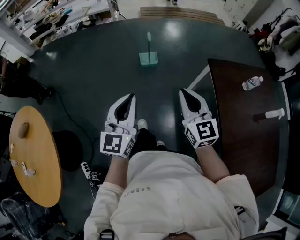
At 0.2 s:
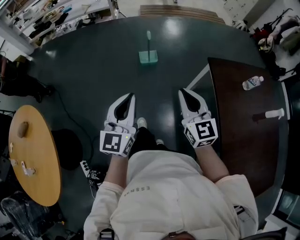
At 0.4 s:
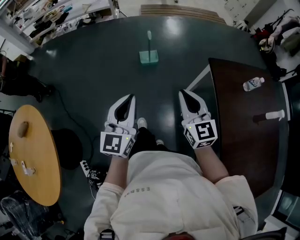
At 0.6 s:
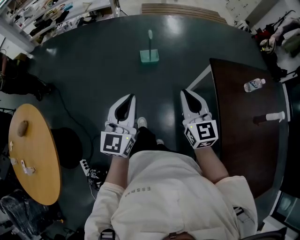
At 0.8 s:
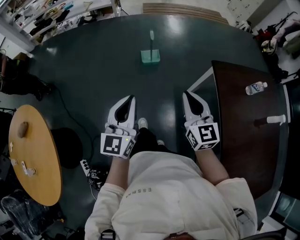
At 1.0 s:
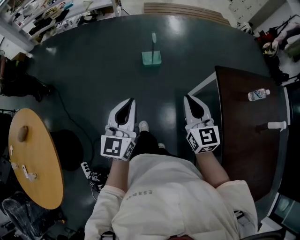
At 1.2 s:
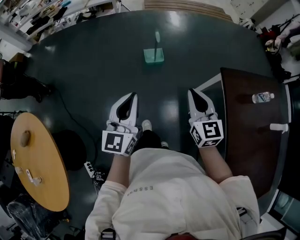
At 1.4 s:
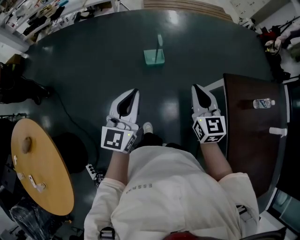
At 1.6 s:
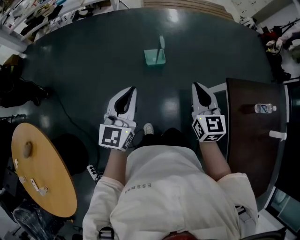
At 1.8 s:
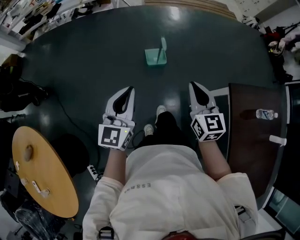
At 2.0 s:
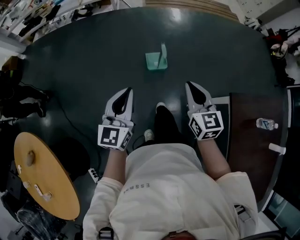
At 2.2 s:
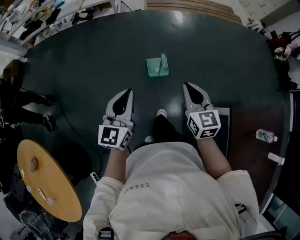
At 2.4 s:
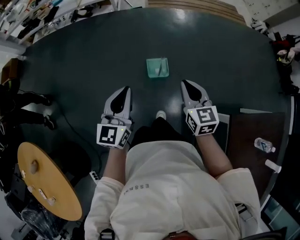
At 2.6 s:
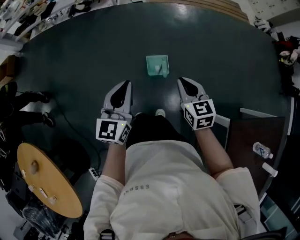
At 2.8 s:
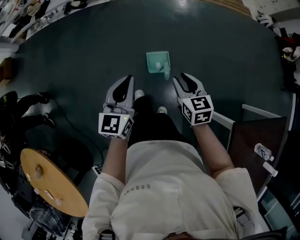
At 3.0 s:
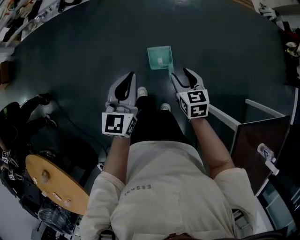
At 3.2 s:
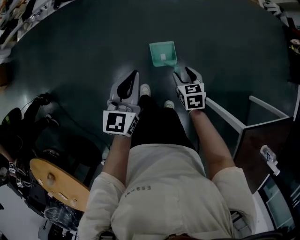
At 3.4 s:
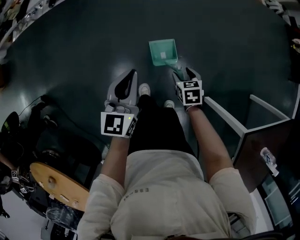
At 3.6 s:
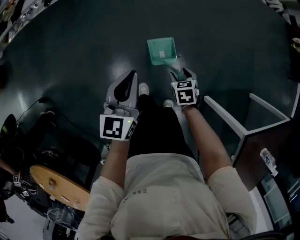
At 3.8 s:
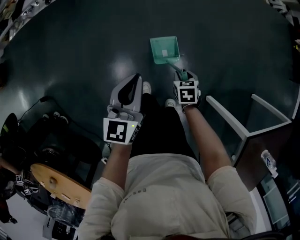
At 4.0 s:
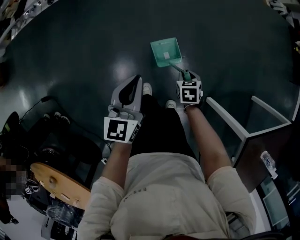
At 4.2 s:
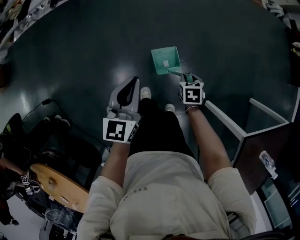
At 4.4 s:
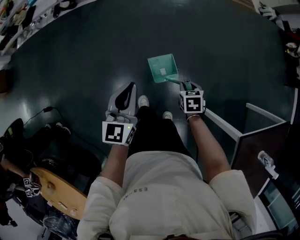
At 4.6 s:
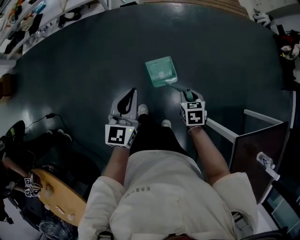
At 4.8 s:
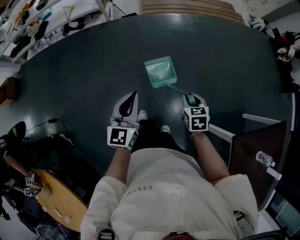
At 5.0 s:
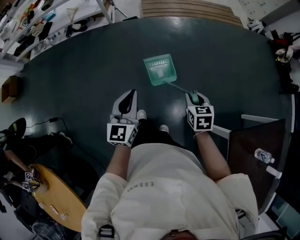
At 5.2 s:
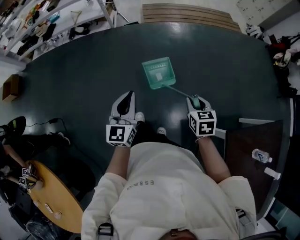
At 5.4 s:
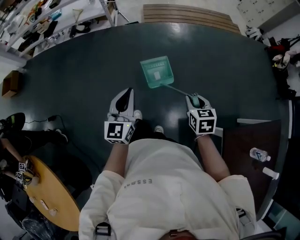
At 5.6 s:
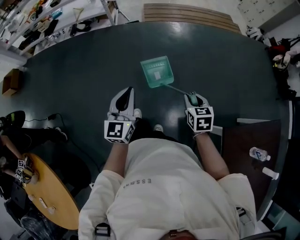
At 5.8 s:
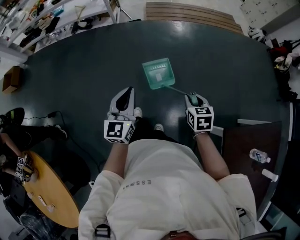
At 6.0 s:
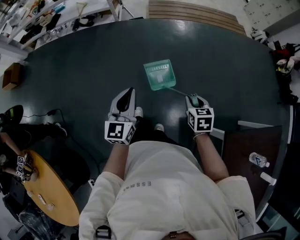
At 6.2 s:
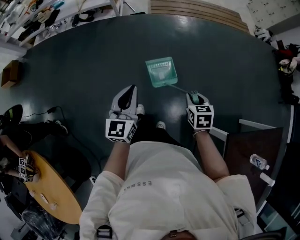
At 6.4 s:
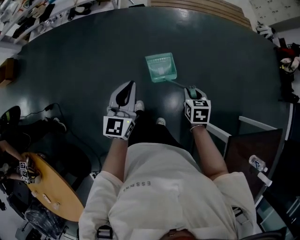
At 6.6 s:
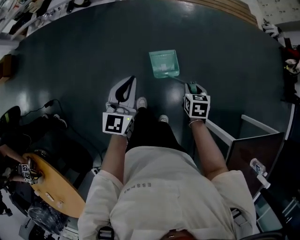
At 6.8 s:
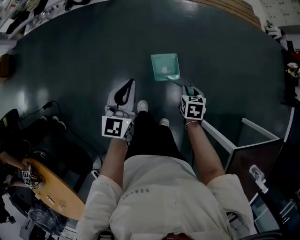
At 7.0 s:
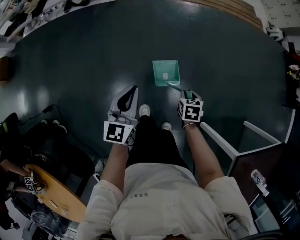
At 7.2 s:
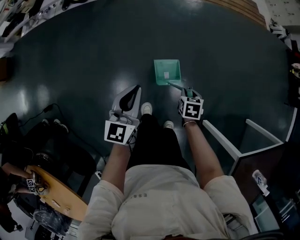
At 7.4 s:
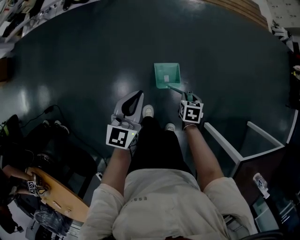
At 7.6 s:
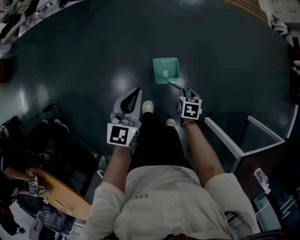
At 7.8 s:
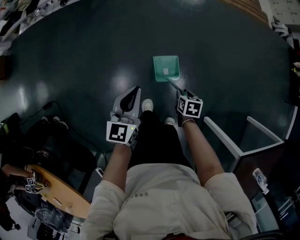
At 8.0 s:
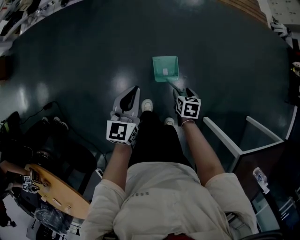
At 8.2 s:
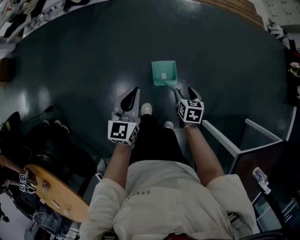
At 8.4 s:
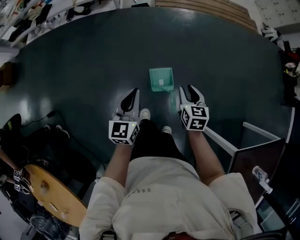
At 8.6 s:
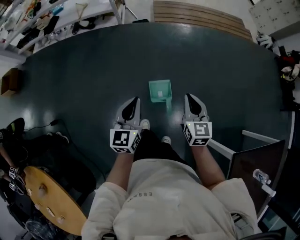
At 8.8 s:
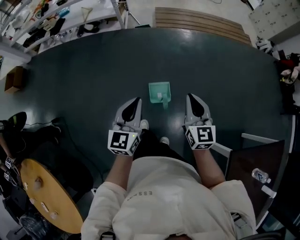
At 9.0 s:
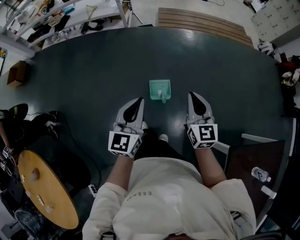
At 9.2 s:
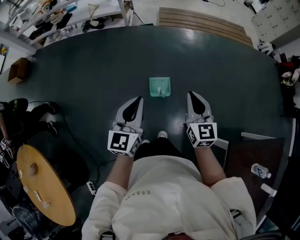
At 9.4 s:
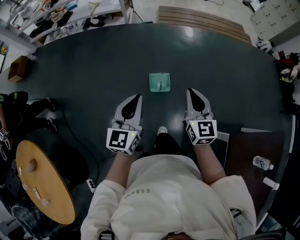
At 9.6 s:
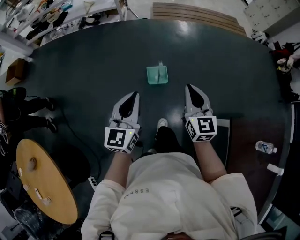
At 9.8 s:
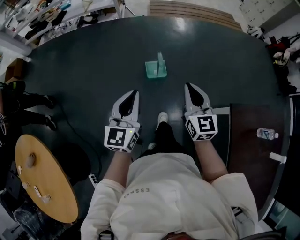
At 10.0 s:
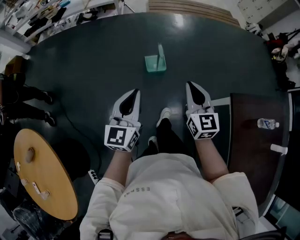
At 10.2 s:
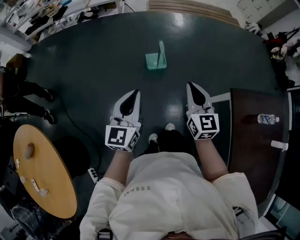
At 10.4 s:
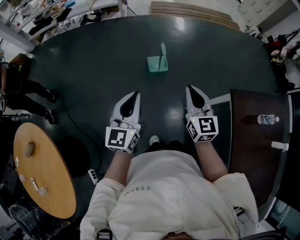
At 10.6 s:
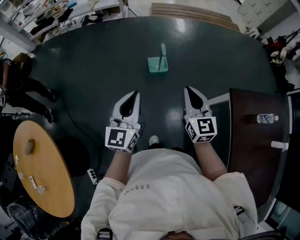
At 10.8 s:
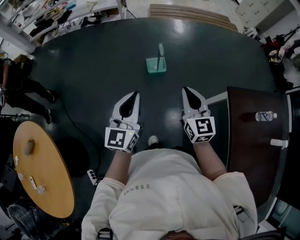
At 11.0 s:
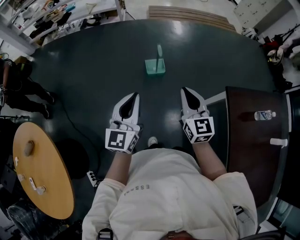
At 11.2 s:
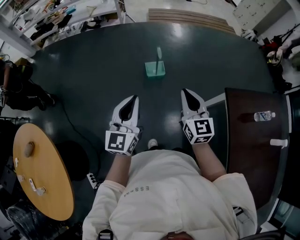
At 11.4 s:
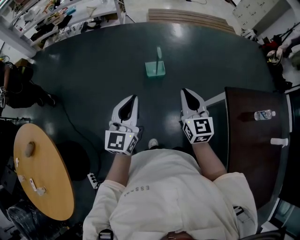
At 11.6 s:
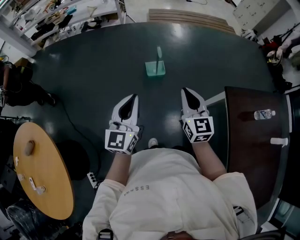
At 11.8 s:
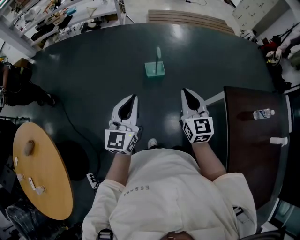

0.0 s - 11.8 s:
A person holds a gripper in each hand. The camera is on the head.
0.0 s - 1.4 s: The two grippers go some 15 cm forward.
1.4 s - 3.0 s: The two grippers travel together, forward, roughly 40 cm. The right gripper travels downward by about 20 cm, changes its angle by some 30 degrees, and opens its fingers.
3.0 s - 4.4 s: The right gripper heads downward, covering roughly 10 cm, swivels roughly 30 degrees, and closes.
4.4 s - 6.0 s: The left gripper moves backward, upward and to the right, roughly 15 cm. Meanwhile the right gripper goes roughly 25 cm upward, backward and to the right.
6.0 s - 7.4 s: The right gripper heads downward, forward and to the left, covering some 30 cm, and swivels about 20 degrees; the left gripper goes roughly 25 cm forward, downward and to the left.
7.4 s - 8.8 s: The right gripper goes some 35 cm upward, tilts its fingers some 50 degrees upward, and opens, then closes once more, while the left gripper is displaced upward, backward and to the right by approximately 20 cm.
8.8 s - 10.4 s: The two grippers go approximately 35 cm backward.
10.4 s - 11.8 s: Both grippers move backward, some 5 cm.

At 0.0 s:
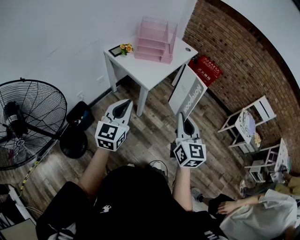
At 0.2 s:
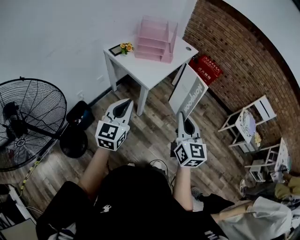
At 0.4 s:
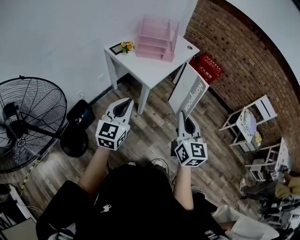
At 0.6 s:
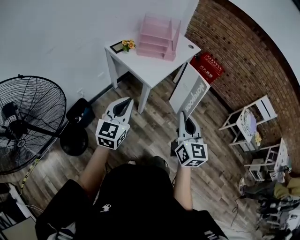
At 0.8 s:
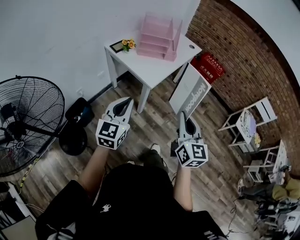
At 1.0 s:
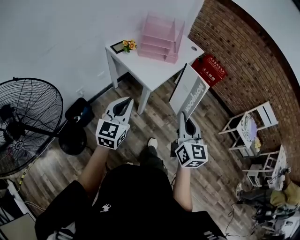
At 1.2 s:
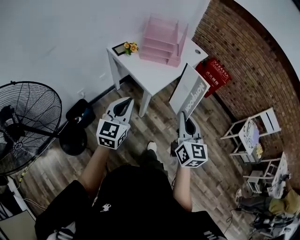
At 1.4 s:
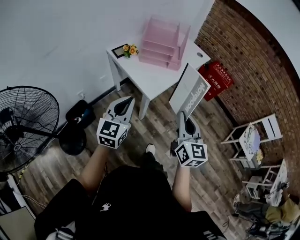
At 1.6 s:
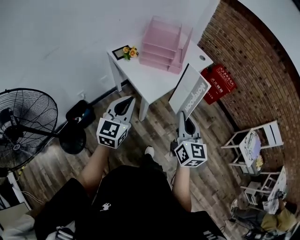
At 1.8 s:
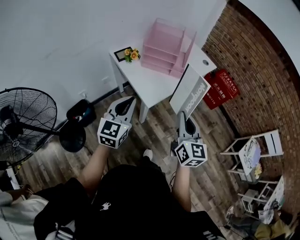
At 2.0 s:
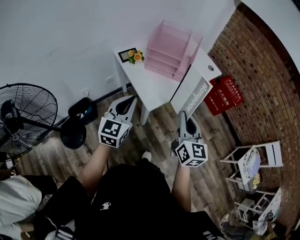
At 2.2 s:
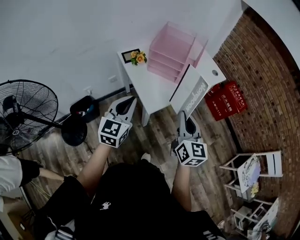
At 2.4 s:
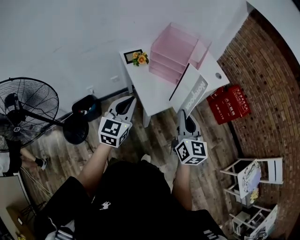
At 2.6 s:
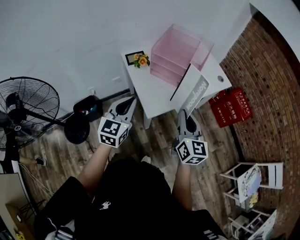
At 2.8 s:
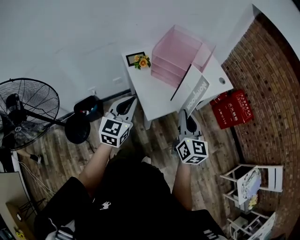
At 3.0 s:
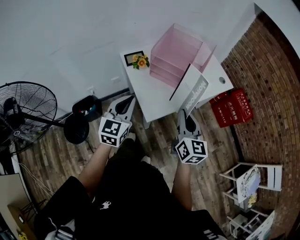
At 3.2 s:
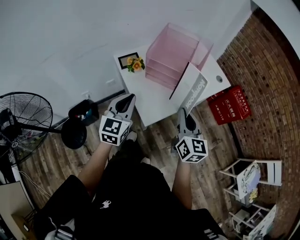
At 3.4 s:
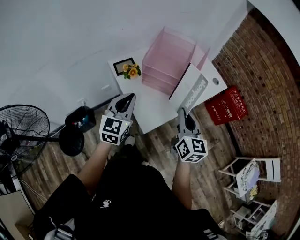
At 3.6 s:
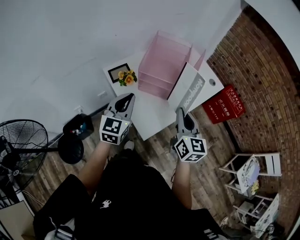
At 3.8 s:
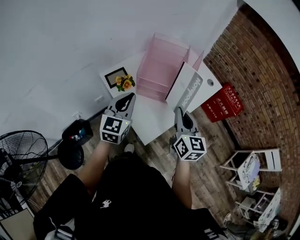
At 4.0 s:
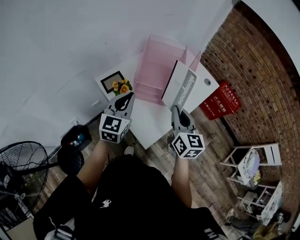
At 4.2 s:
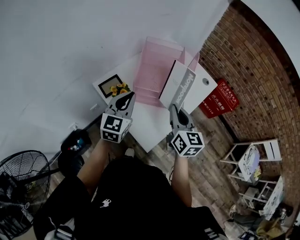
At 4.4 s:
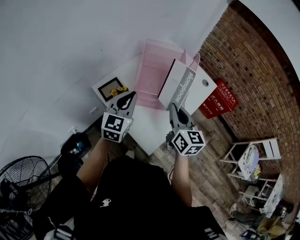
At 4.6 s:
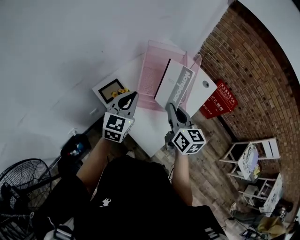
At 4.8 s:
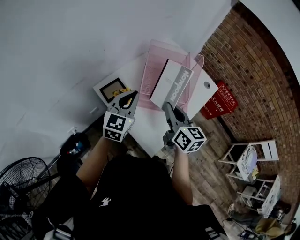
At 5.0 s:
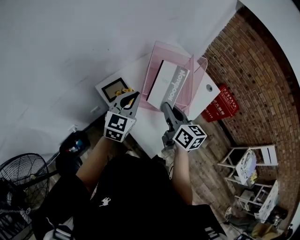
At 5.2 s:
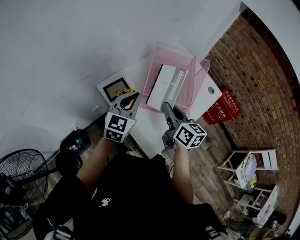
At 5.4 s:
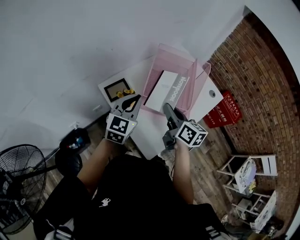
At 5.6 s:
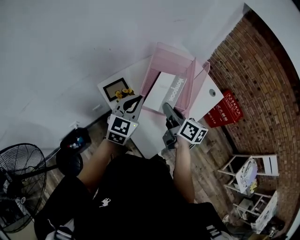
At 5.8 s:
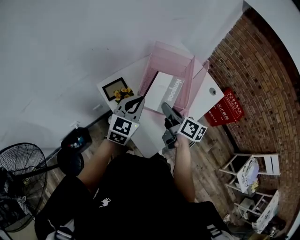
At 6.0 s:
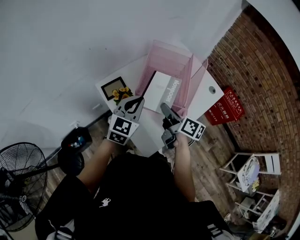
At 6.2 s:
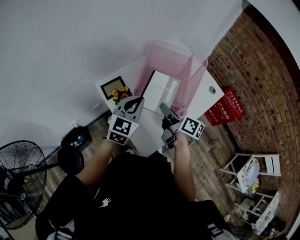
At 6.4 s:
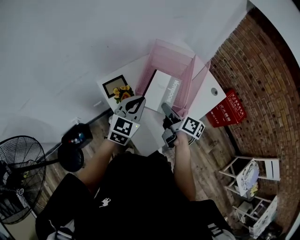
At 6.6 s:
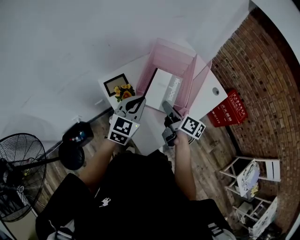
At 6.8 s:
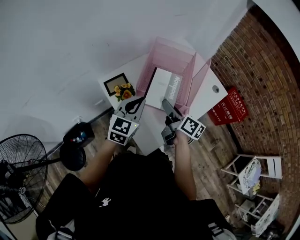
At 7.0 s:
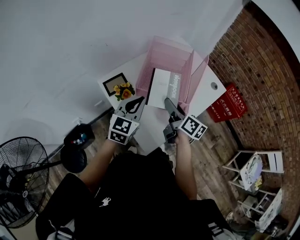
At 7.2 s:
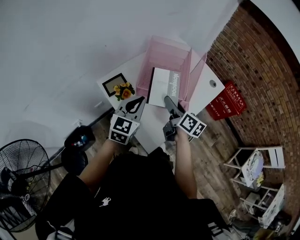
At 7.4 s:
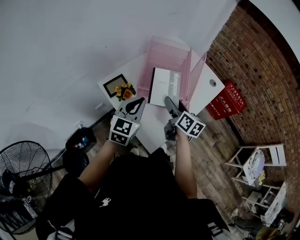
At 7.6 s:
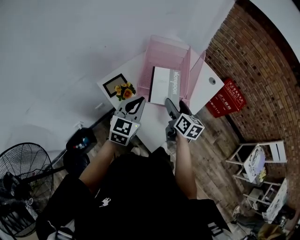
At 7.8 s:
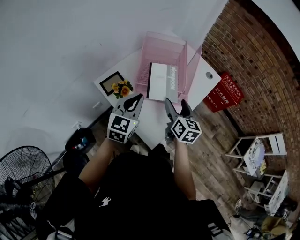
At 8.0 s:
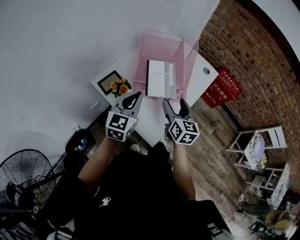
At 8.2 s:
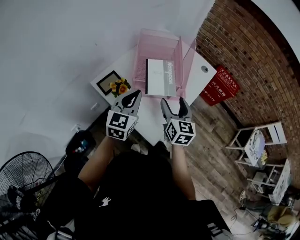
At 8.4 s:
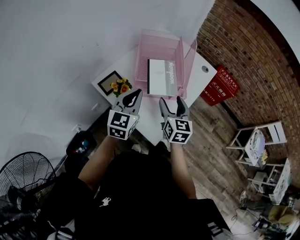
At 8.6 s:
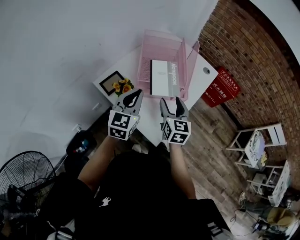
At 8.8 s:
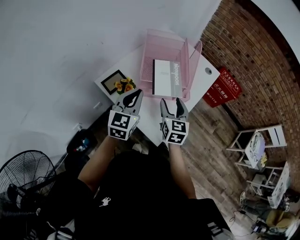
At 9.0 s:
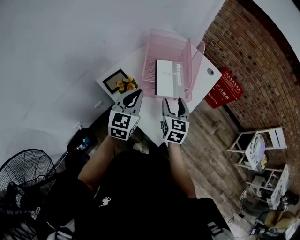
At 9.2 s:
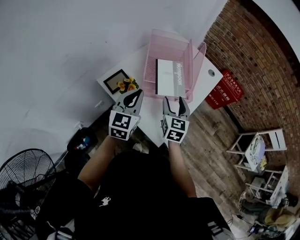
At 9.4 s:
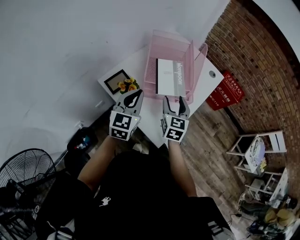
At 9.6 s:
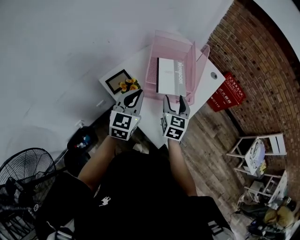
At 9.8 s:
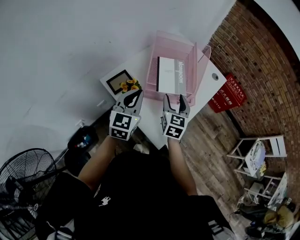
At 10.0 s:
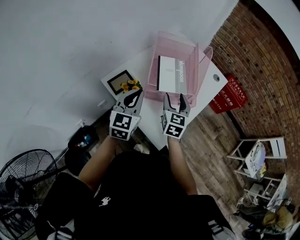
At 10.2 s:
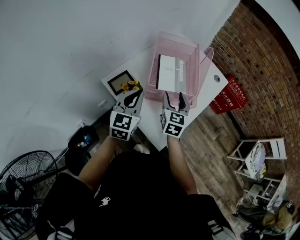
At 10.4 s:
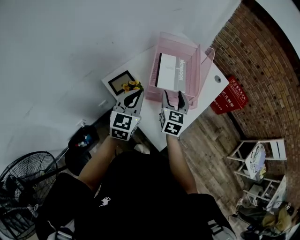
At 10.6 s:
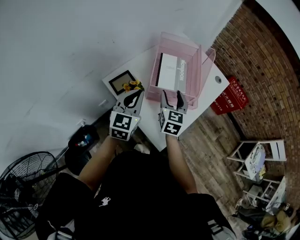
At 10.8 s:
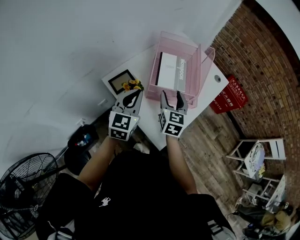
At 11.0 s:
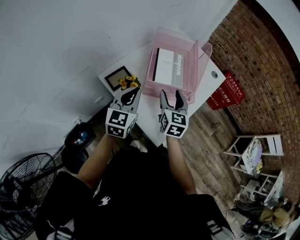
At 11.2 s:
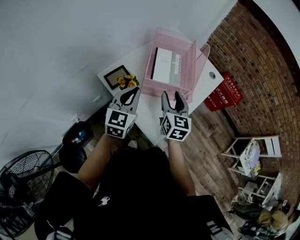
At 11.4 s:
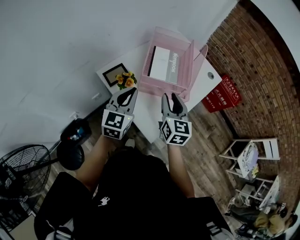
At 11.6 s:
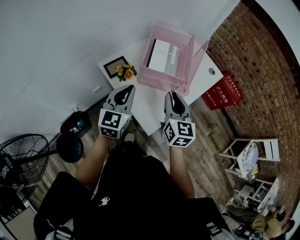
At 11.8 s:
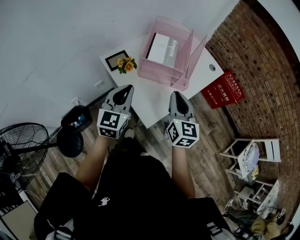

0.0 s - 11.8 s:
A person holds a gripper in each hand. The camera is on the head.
0.0 s - 1.4 s: Both grippers move forward, about 15 cm.
1.4 s - 3.0 s: Both grippers move forward, approximately 20 cm.
3.0 s - 4.4 s: The left gripper moves forward, about 25 cm, and turns by roughly 20 degrees. The right gripper shifts about 20 cm forward and to the left.
4.4 s - 6.0 s: The right gripper heads downward and forward, covering roughly 10 cm, and turns by about 50 degrees.
6.0 s - 7.4 s: The right gripper swivels some 20 degrees, and opens its fingers.
7.4 s - 8.8 s: The right gripper moves backward, approximately 5 cm, and turns by roughly 40 degrees.
8.8 s - 10.4 s: The right gripper travels forward by roughly 5 cm.
10.4 s - 11.8 s: The left gripper moves backward, approximately 15 cm. The right gripper travels backward, to the right and upward by roughly 20 cm, and closes its fingers.
